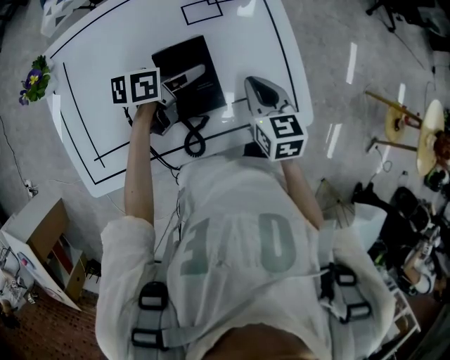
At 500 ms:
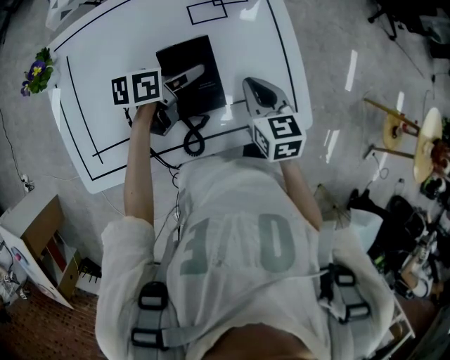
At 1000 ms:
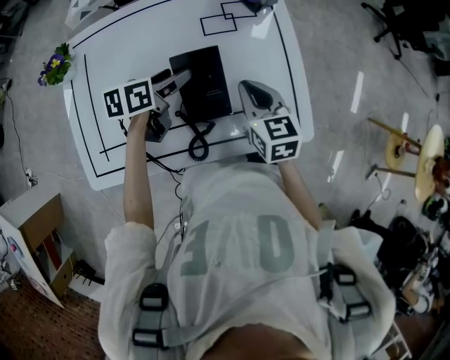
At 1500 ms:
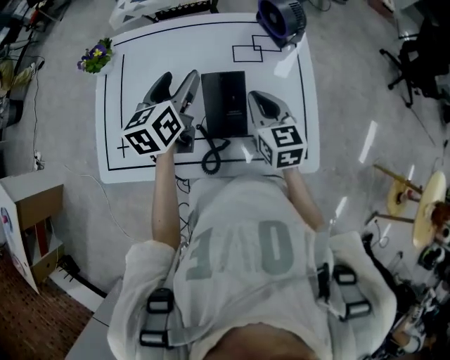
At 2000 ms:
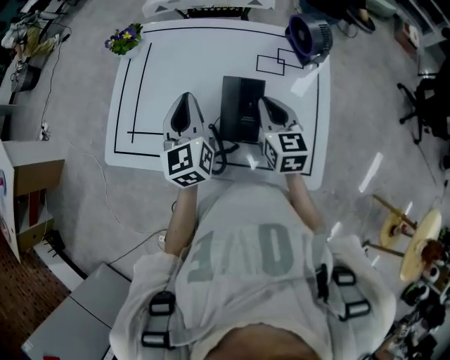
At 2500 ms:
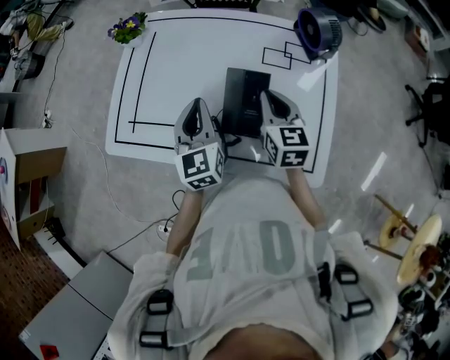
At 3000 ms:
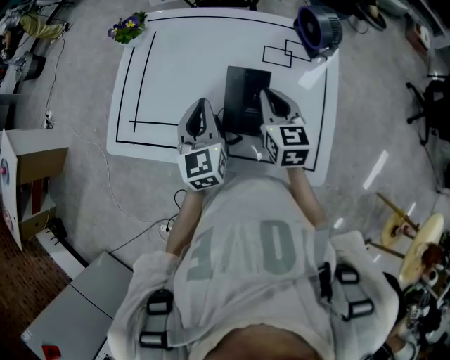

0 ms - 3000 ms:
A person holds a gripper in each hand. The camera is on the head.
0 ms - 1500 ms: The right gripper changes place by roughly 10 cm. Meanwhile the left gripper heads upward, covering about 15 cm, and rotates some 50 degrees.
1500 ms - 3000 ms: The left gripper is displaced backward by about 10 cm, changes its angle by about 30 degrees, and closes.

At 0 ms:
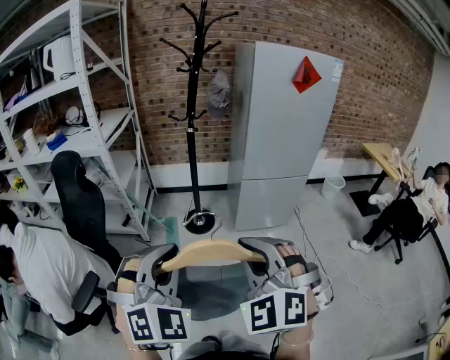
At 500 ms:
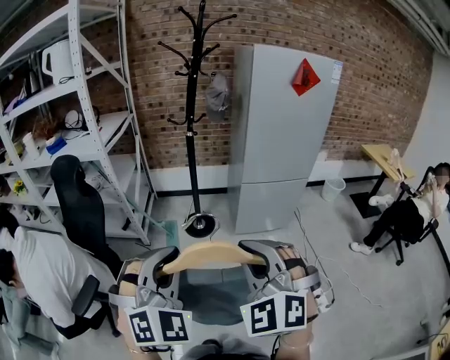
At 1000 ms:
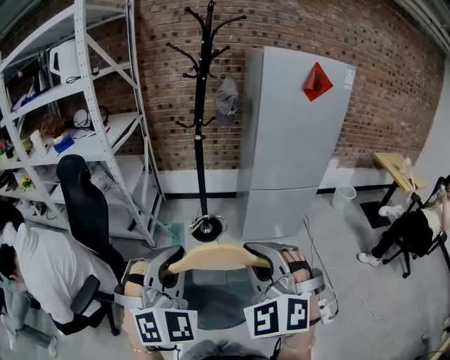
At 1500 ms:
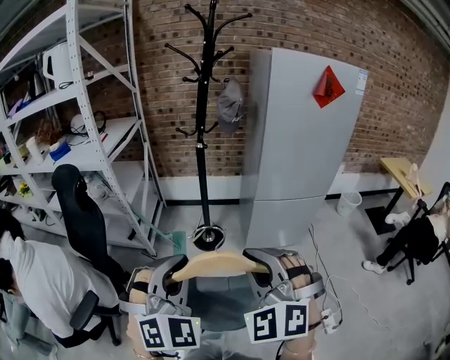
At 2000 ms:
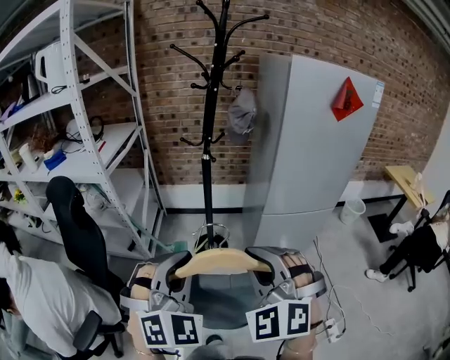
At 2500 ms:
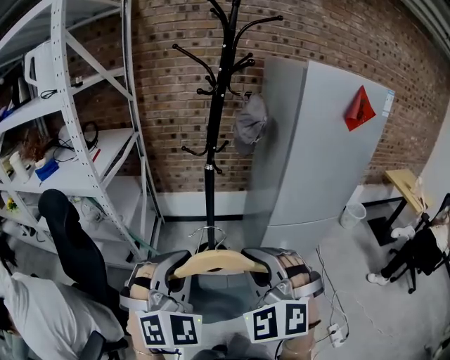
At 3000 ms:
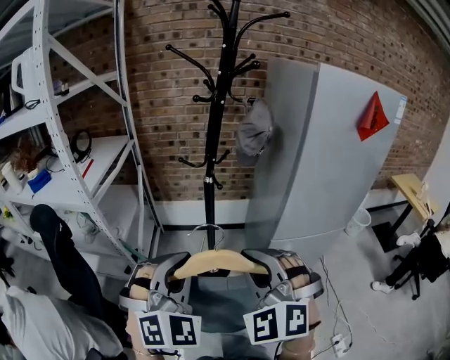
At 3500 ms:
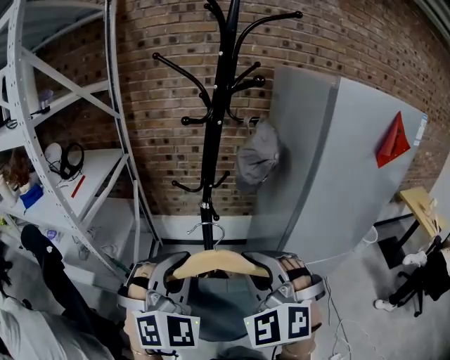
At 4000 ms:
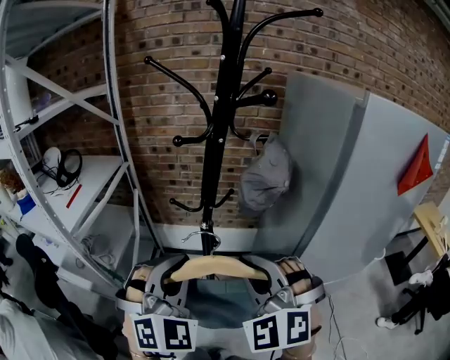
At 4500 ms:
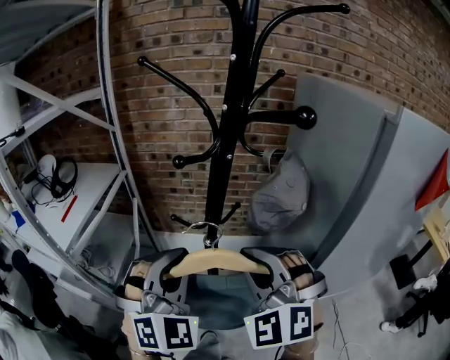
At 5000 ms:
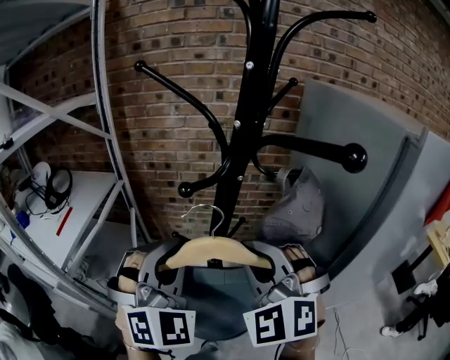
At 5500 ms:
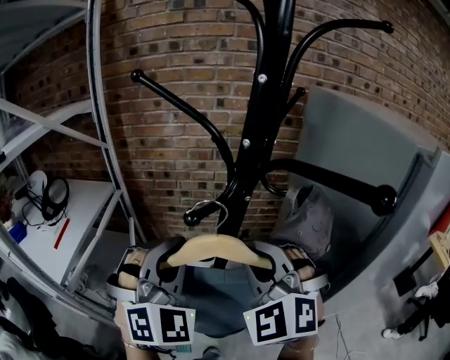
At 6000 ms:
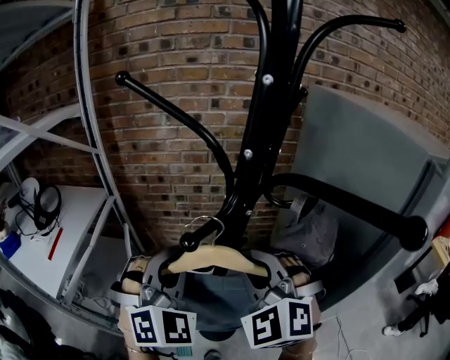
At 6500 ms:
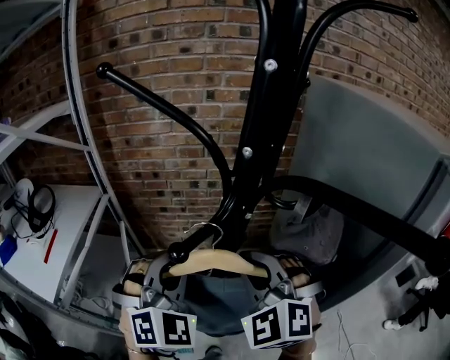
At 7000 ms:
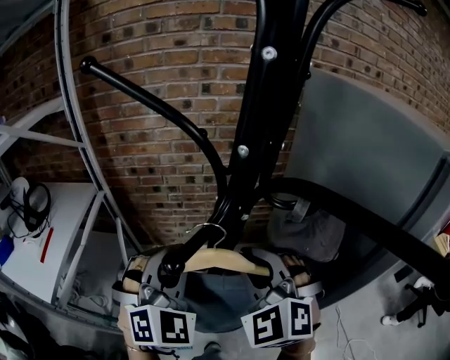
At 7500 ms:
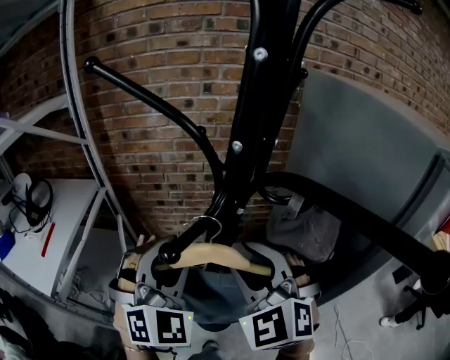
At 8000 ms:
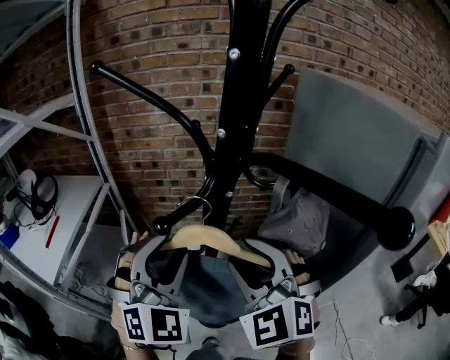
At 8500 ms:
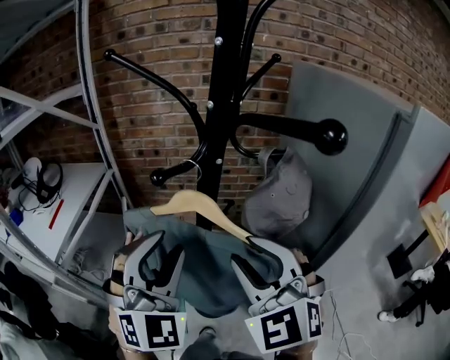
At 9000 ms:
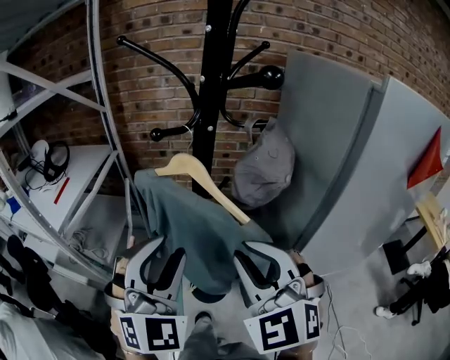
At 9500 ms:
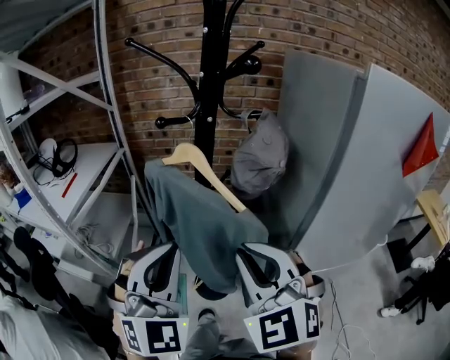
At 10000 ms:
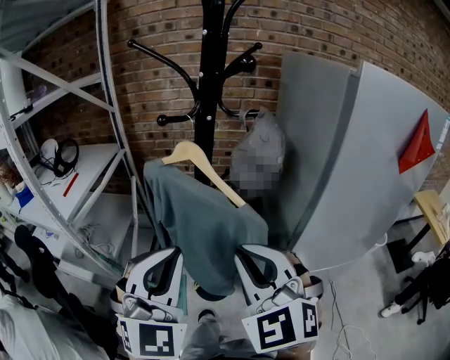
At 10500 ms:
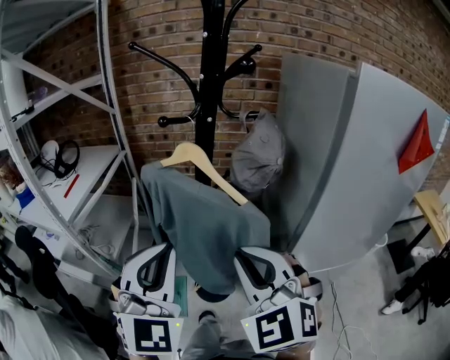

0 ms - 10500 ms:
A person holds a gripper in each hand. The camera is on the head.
0 ms - 2000 ms: Both grippers travel together forward, some 20 cm.
2000 ms - 4000 ms: Both grippers travel together forward, about 35 cm.
4000 ms - 6500 ms: Both grippers travel together forward, about 25 cm.
6500 ms - 8500 ms: The grippers both shift backward by some 10 cm. The left gripper opens its fingers, while the right gripper opens its fingers.
8500 ms - 10500 ms: The two grippers go about 15 cm backward. The right gripper closes. The left gripper closes up.

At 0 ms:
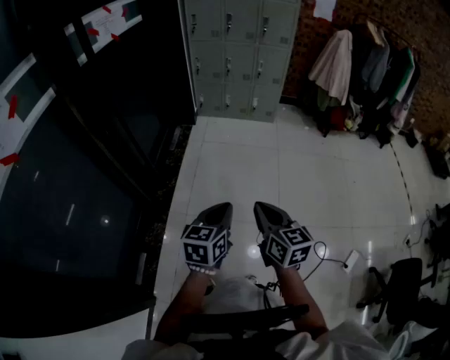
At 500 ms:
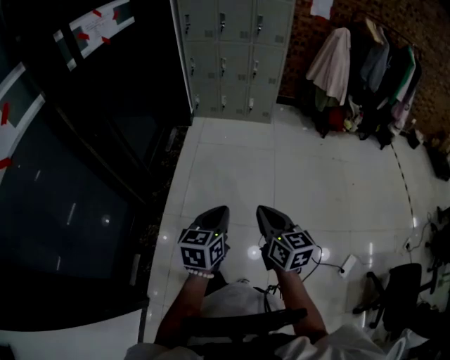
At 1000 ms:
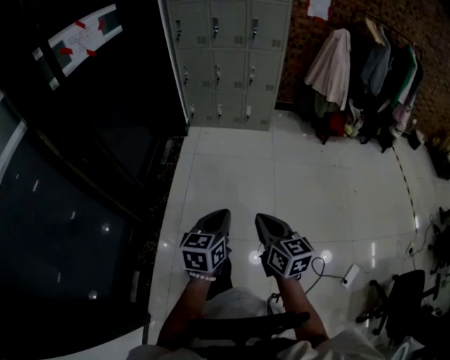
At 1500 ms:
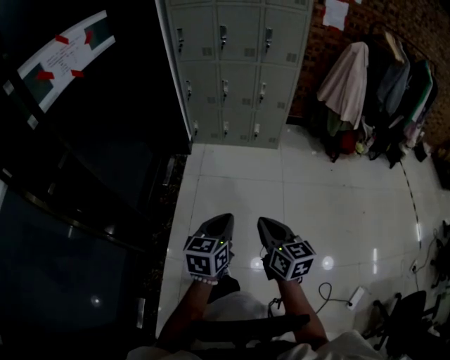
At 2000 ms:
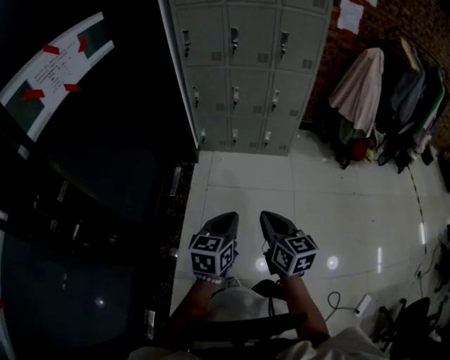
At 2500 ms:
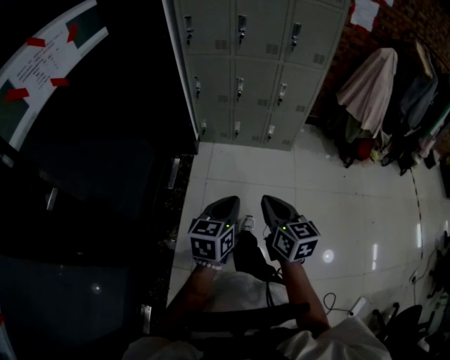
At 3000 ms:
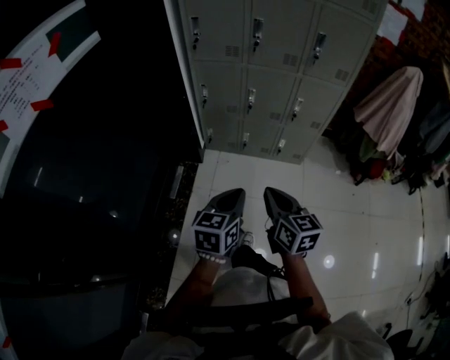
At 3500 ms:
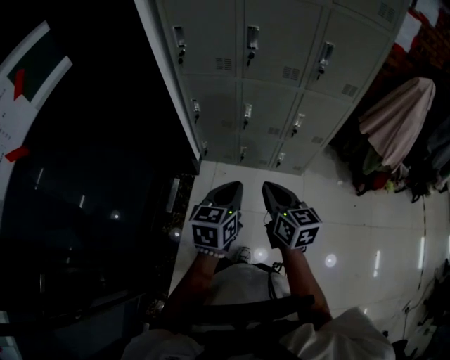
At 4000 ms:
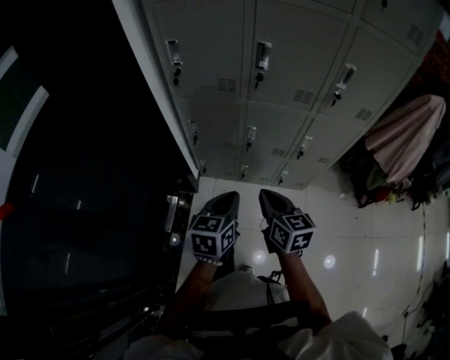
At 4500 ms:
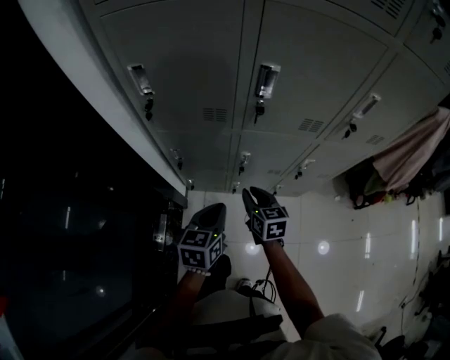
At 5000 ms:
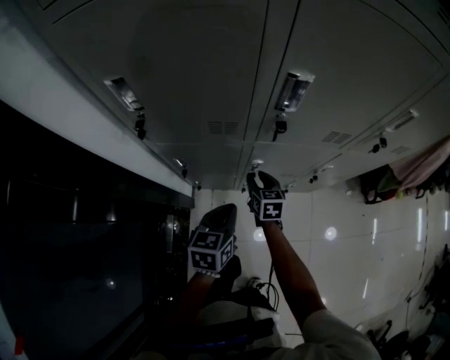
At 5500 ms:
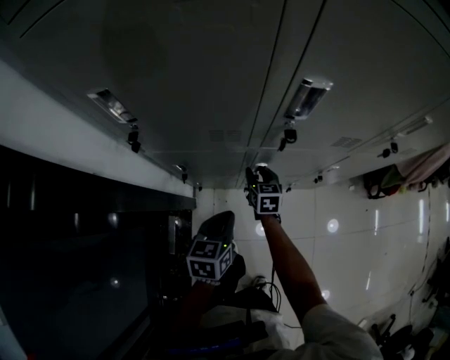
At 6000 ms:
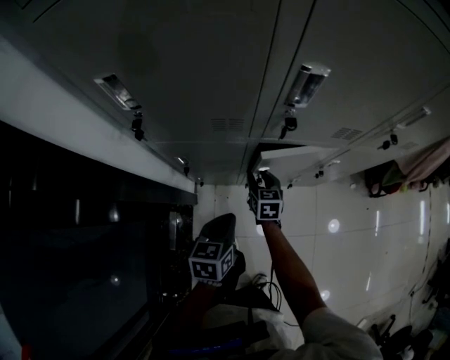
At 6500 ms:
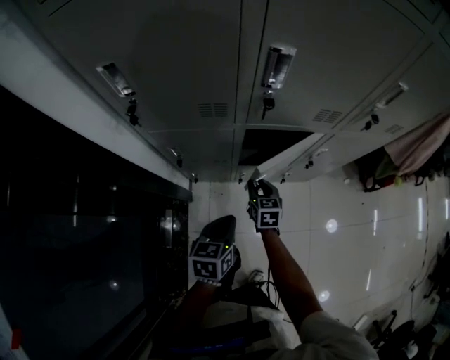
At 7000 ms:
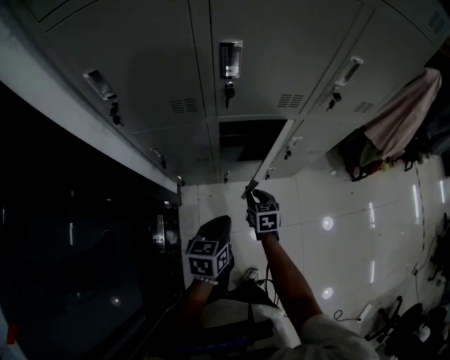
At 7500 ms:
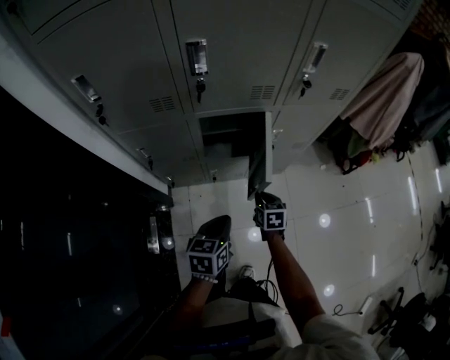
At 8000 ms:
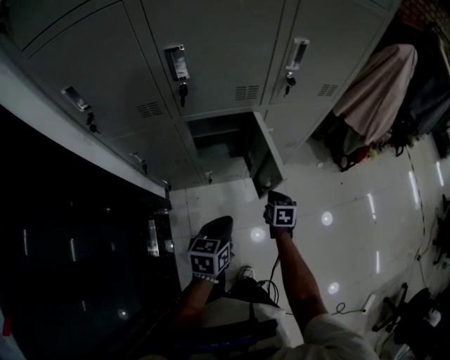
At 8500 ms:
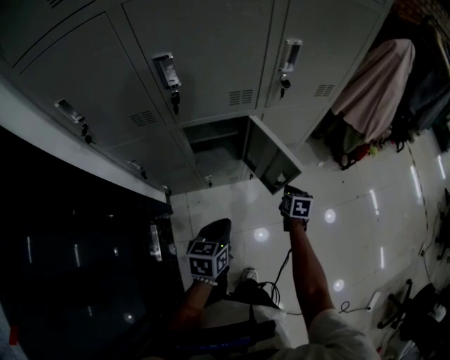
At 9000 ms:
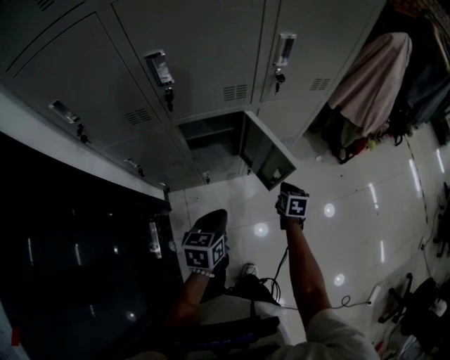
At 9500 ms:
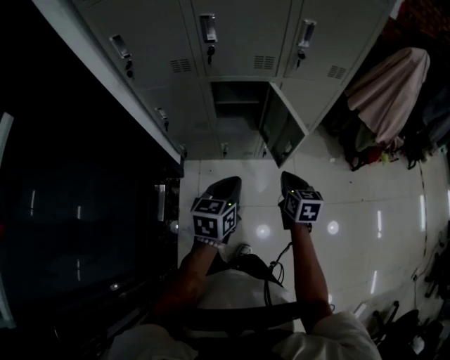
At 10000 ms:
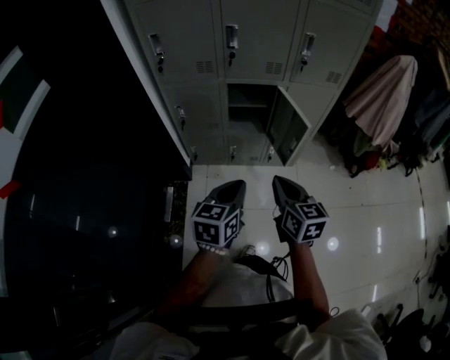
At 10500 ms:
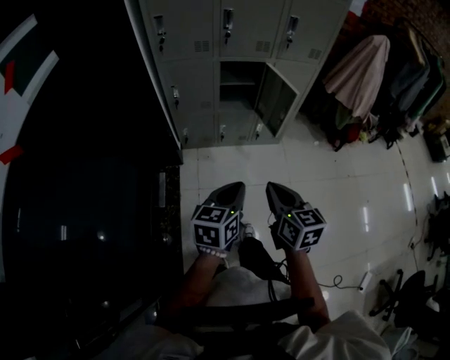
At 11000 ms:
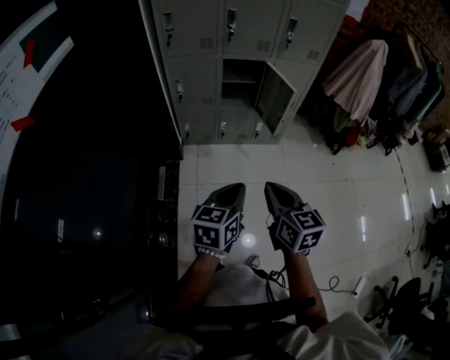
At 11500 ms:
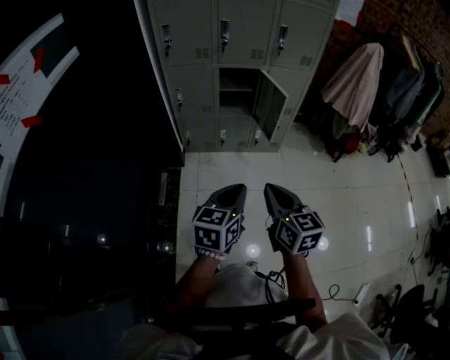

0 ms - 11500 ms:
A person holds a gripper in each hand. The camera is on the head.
0 ms - 2000 ms: Both grippers are carried forward, roughly 50 cm.
2000 ms - 4000 ms: Both grippers are carried forward, approximately 60 cm.
4000 ms - 6000 ms: The right gripper travels forward and downward by some 40 cm, swivels about 20 degrees, and opens; the left gripper goes about 25 cm forward and downward.
6000 ms - 7500 ms: The two grippers go some 20 cm to the right and backward. The right gripper closes its fingers.
7500 ms - 9500 ms: The right gripper goes roughly 20 cm upward, to the right and backward; the left gripper travels upward and to the right by approximately 10 cm.
9500 ms - 11500 ms: The left gripper moves backward, about 35 cm, while the right gripper heads backward and upward, covering some 50 cm.

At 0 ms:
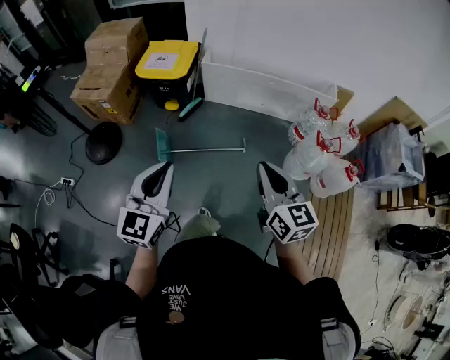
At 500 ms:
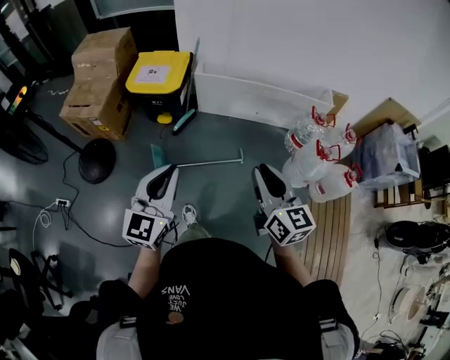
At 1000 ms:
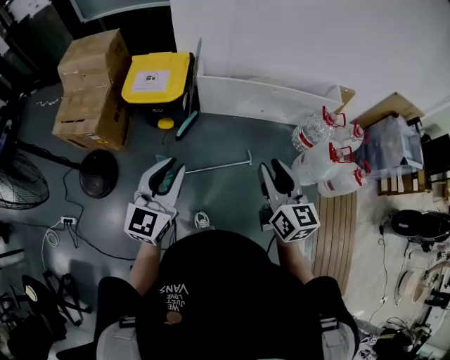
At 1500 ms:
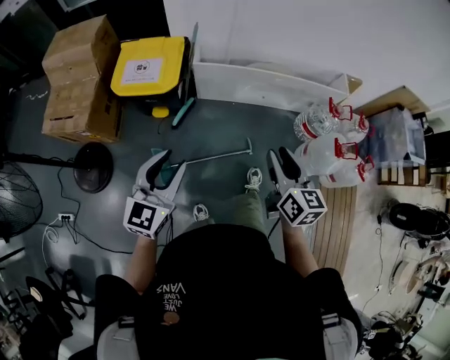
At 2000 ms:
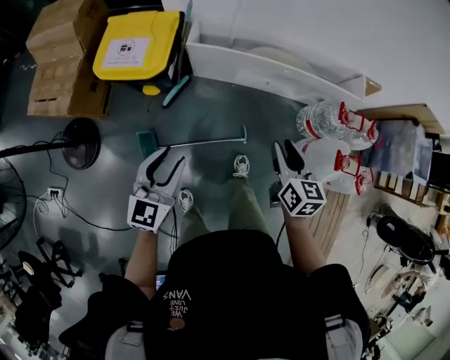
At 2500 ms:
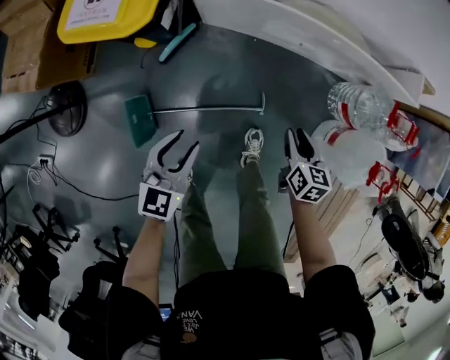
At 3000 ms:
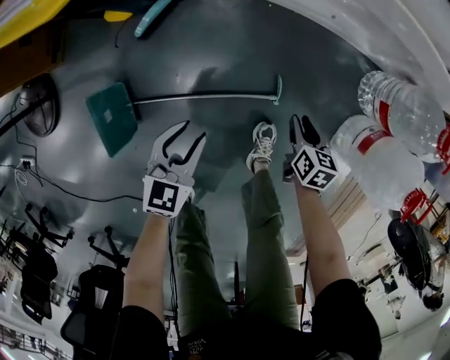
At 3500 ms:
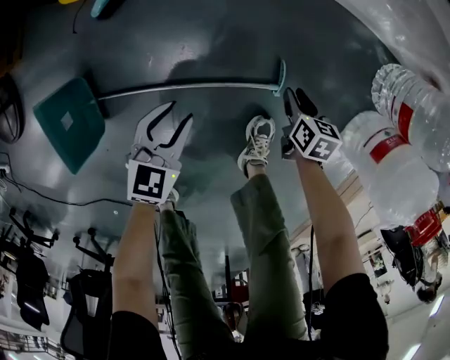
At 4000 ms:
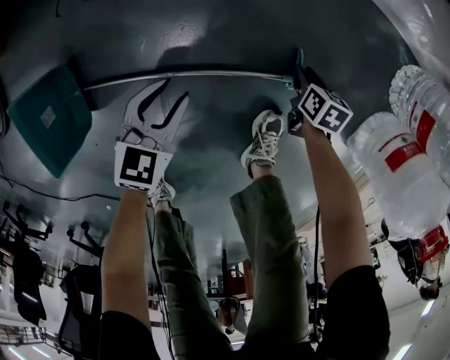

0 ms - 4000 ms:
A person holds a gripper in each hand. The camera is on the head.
0 ms - 2000 ms: Both grippers travel together forward and downward, approximately 40 cm. The right gripper rotates about 20 degrees, and opens, while the left gripper opens its fingers.
2000 ms - 4000 ms: The two grippers go approximately 70 cm downward. The right gripper tips its fingers downward by roughly 40 degrees; the left gripper swivels approximately 30 degrees.
